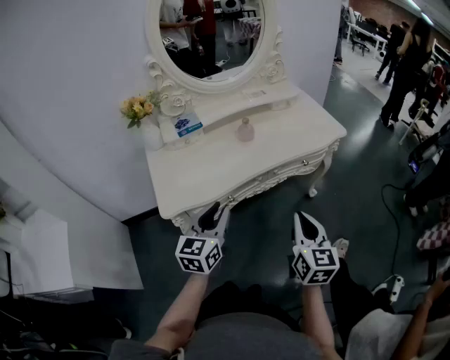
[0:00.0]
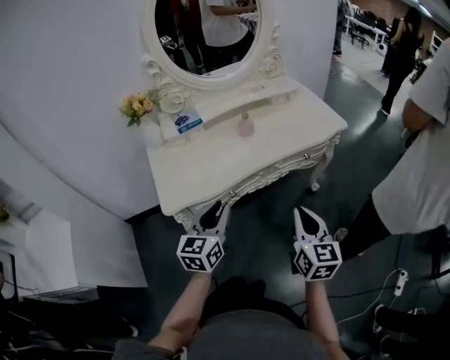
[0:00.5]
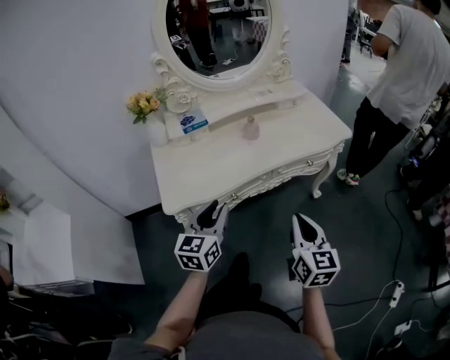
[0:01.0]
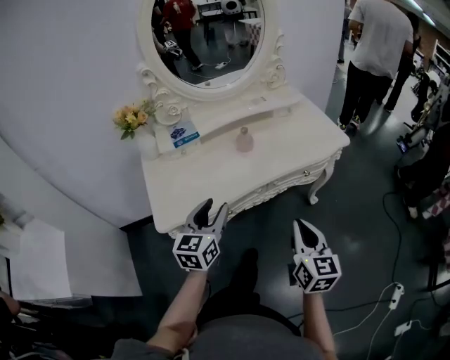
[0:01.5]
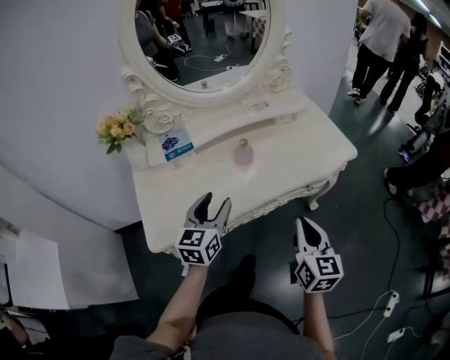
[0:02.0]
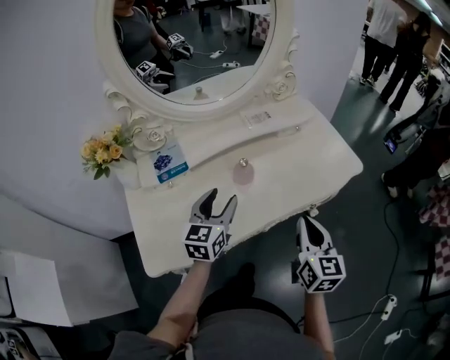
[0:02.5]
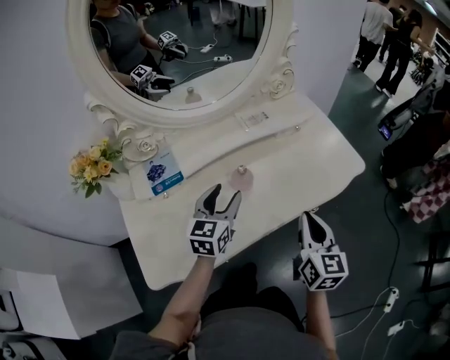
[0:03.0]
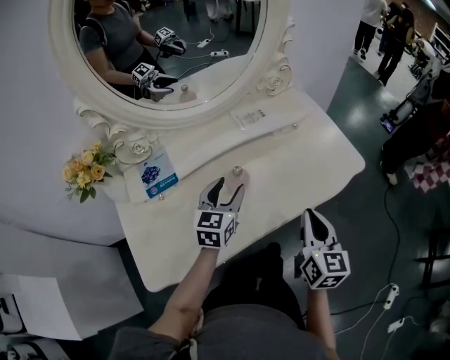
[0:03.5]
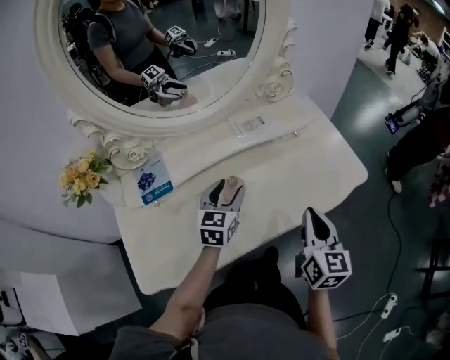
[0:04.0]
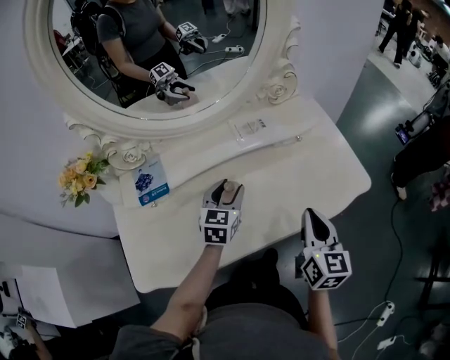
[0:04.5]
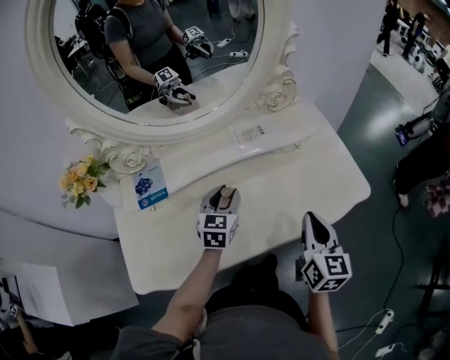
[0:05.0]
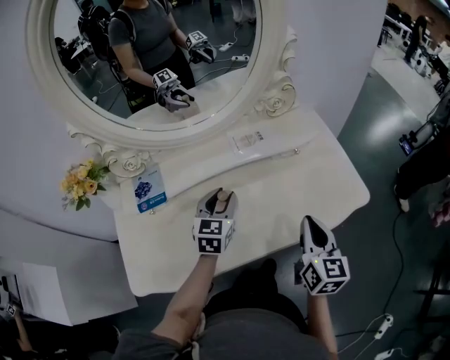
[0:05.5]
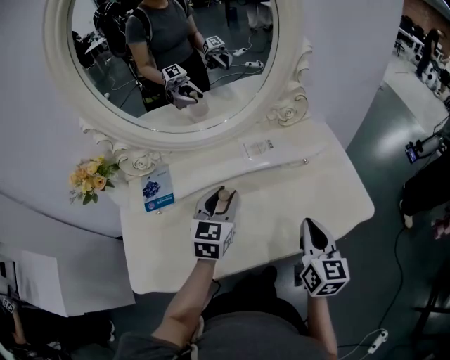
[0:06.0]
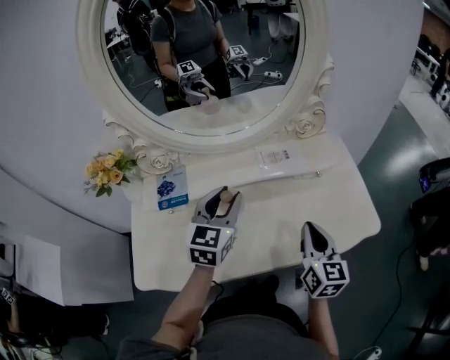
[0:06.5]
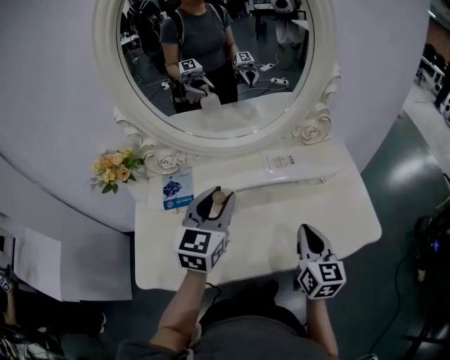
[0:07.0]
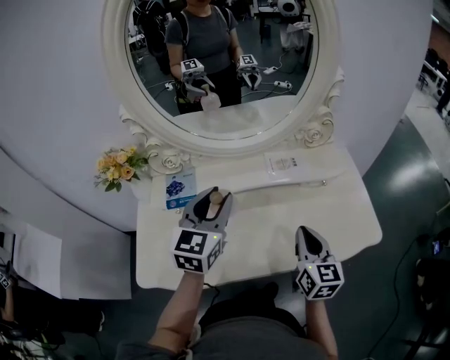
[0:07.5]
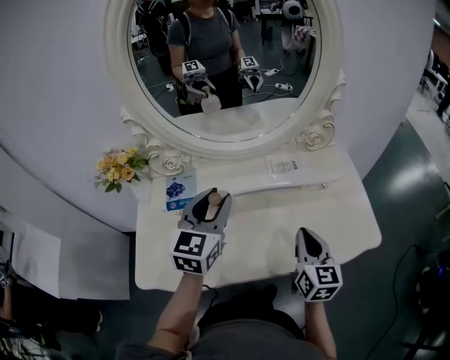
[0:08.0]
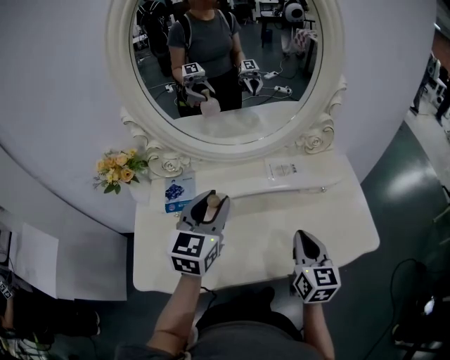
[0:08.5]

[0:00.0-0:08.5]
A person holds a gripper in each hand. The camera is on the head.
0:00.0 to 0:02.0: Both grippers move forward, some 15 cm. The left gripper opens.
0:02.0 to 0:04.0: The two grippers go some 20 cm forward.
0:04.0 to 0:06.5: The left gripper moves upward, approximately 10 cm, and closes up. The right gripper is displaced forward by about 10 cm.
0:06.5 to 0:08.5: The left gripper shifts by roughly 5 cm.

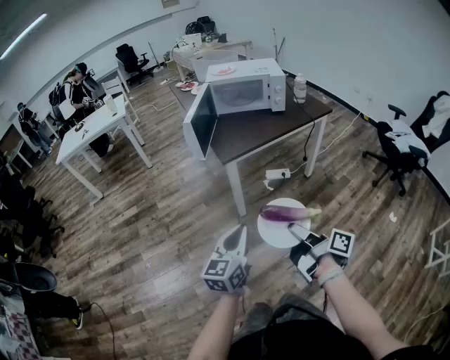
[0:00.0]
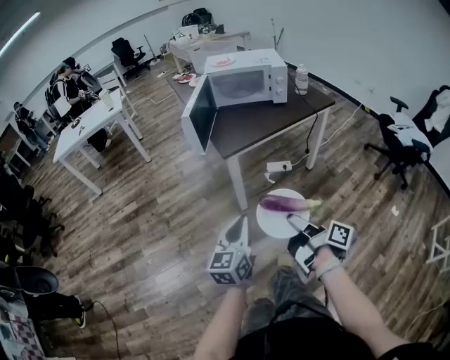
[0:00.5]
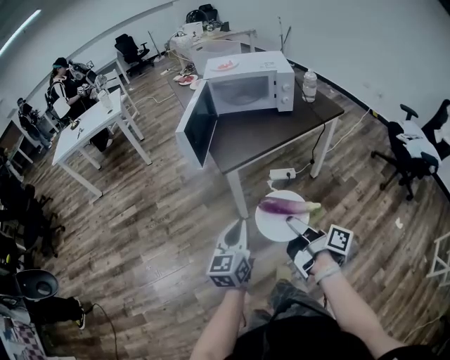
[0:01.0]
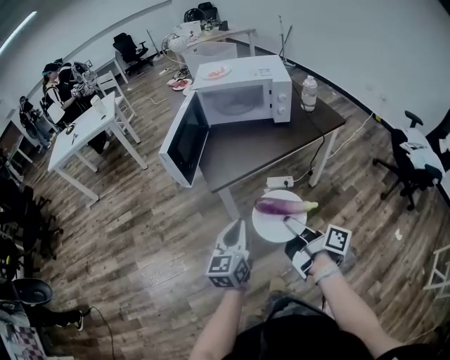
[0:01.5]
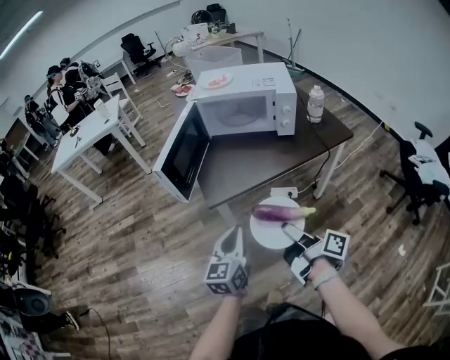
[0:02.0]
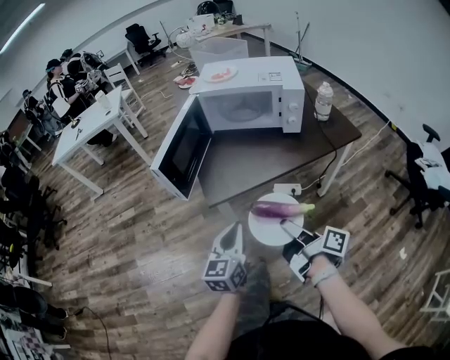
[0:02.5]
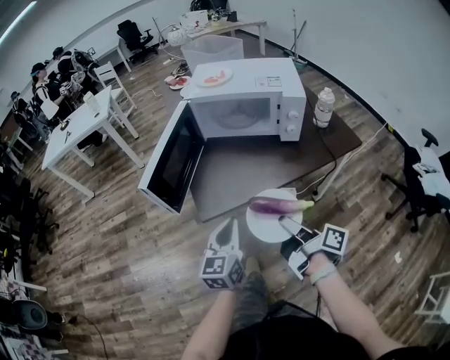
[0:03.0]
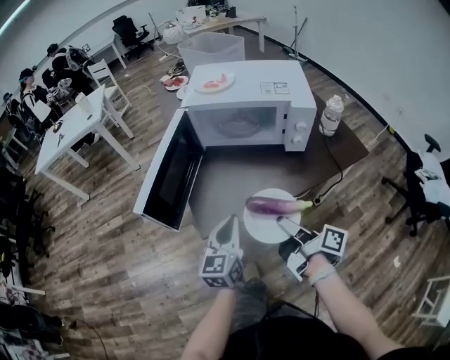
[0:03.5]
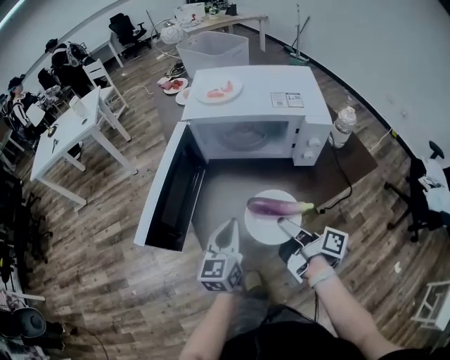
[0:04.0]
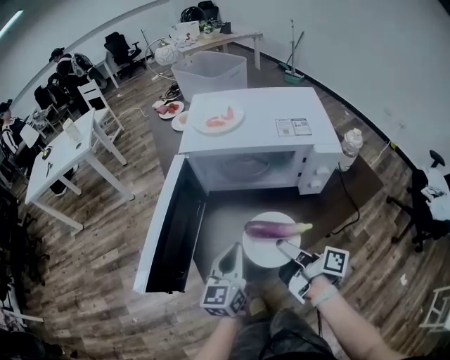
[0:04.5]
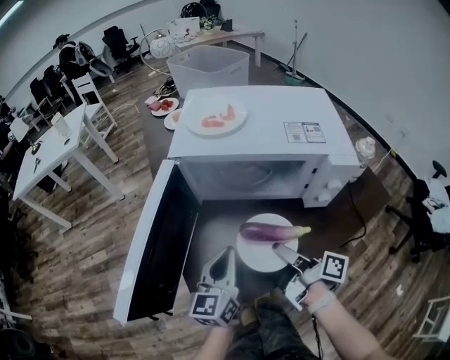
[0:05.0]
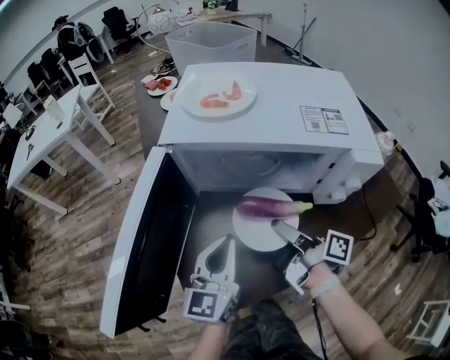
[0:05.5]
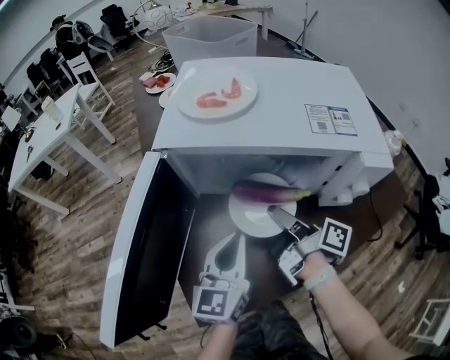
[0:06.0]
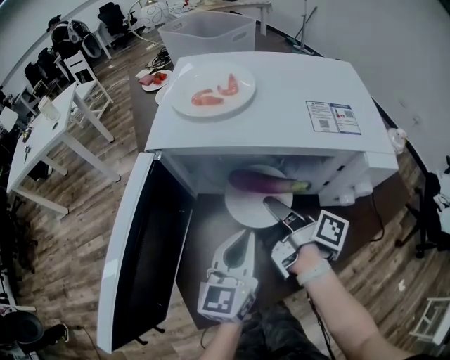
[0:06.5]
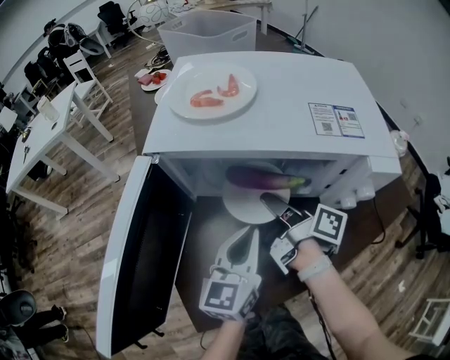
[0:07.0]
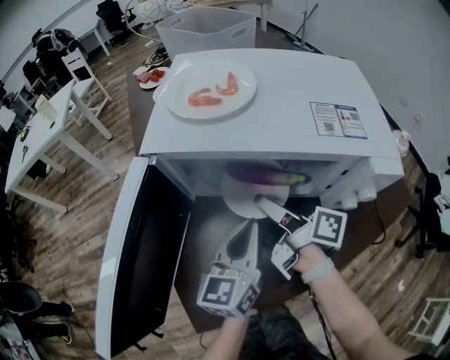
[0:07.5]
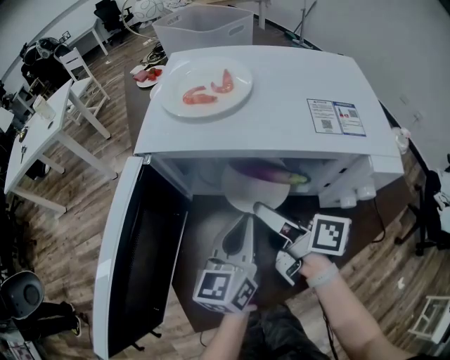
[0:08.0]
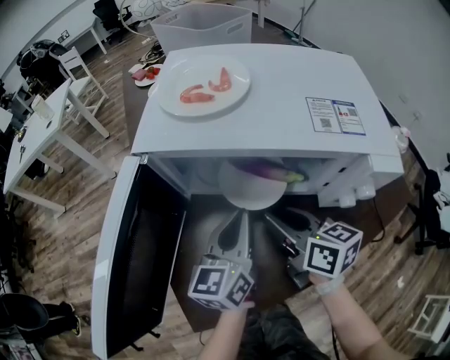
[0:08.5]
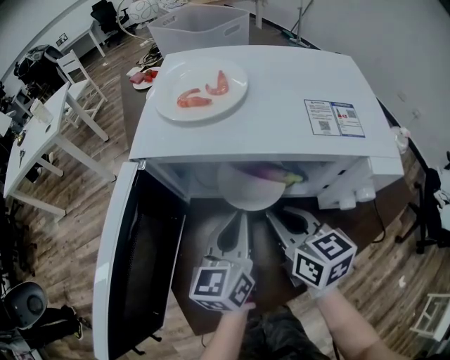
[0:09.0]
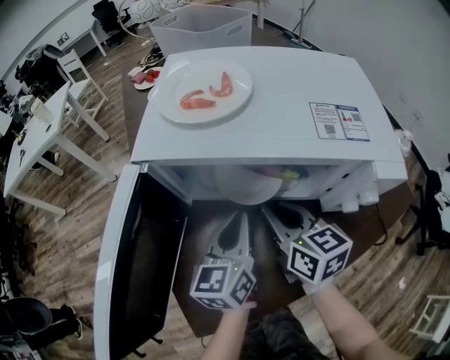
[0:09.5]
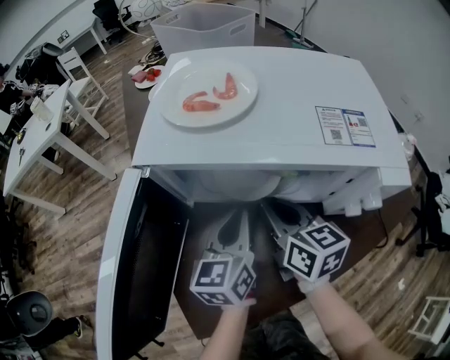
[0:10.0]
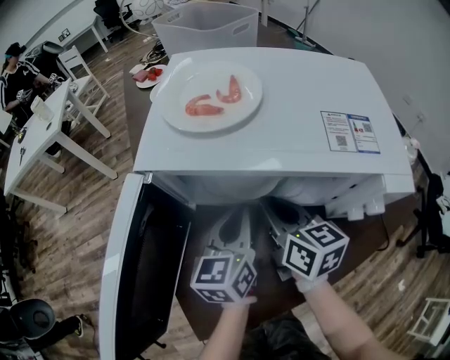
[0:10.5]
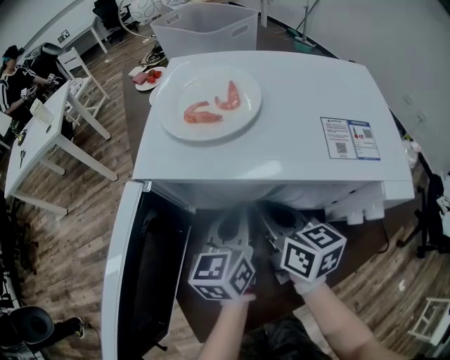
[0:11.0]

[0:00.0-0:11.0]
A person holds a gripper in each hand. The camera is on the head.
0:00.0 to 0:02.0: The grippers both shift forward by about 25 cm.
0:02.0 to 0:03.5: Both grippers move forward, about 15 cm.
0:03.5 to 0:05.5: The grippers both shift forward by roughly 20 cm.
0:05.5 to 0:07.5: The right gripper travels forward by about 10 cm, and opens. The left gripper shifts about 10 cm to the right and forward.
0:07.5 to 0:09.0: The right gripper rotates around the line of its fingers by roughly 50 degrees, counterclockwise from behind, and closes its fingers.
0:09.0 to 0:11.0: Both grippers travel together forward, about 5 cm.

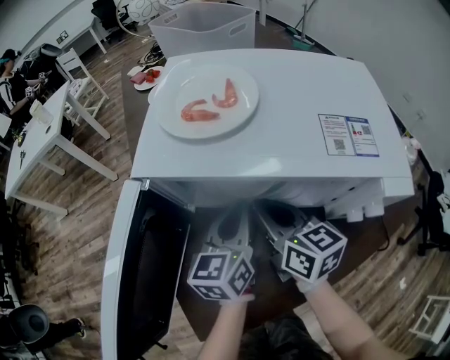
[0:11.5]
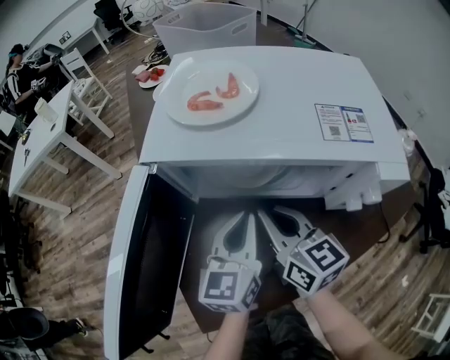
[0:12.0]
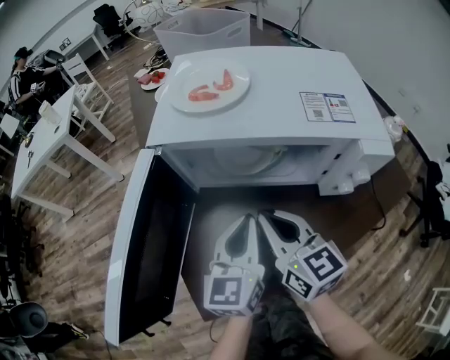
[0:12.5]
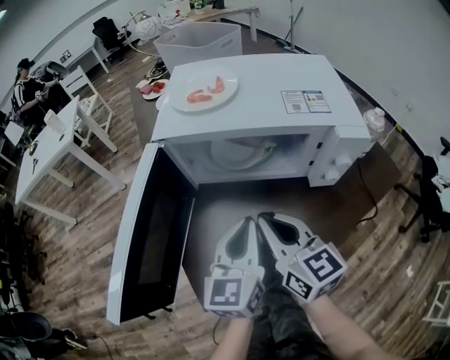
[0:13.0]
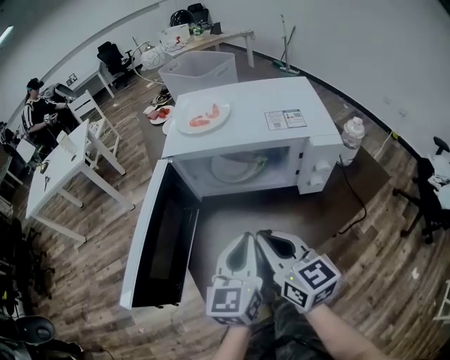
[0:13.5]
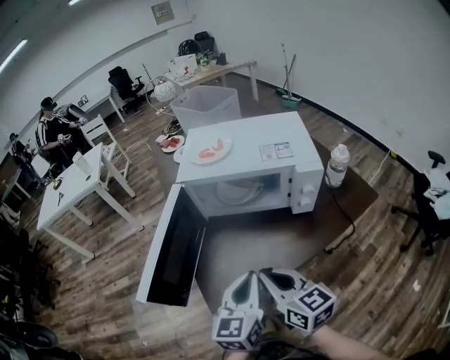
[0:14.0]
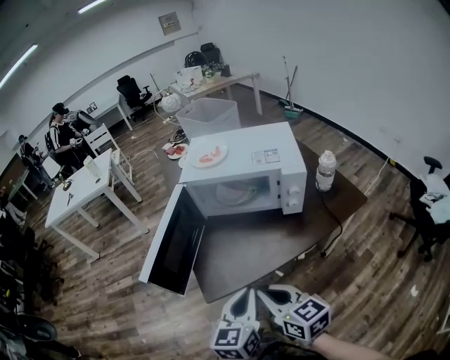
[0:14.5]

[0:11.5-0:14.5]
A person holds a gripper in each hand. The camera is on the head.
0:11.5 to 0:13.0: Both grippers move backward and upward, about 15 cm.
0:13.0 to 0:14.5: The grippers both shift backward by approximately 25 cm.

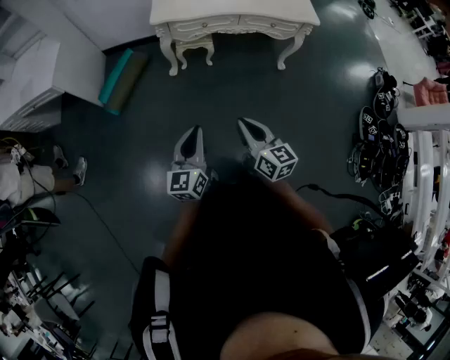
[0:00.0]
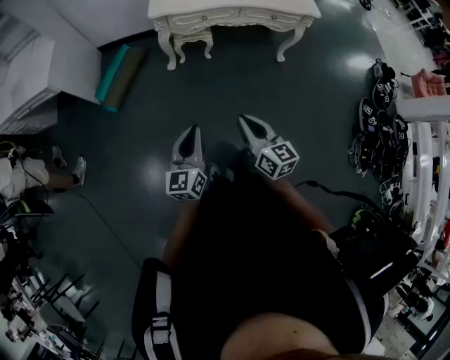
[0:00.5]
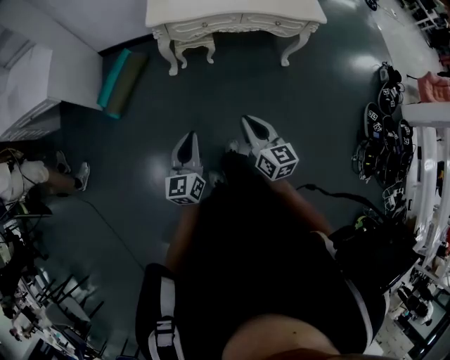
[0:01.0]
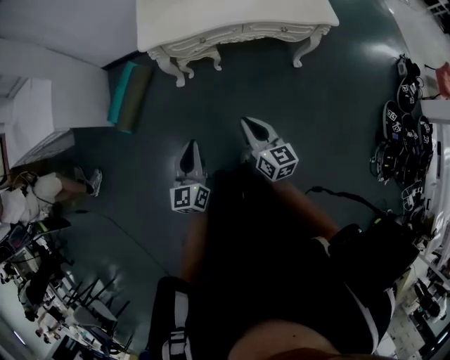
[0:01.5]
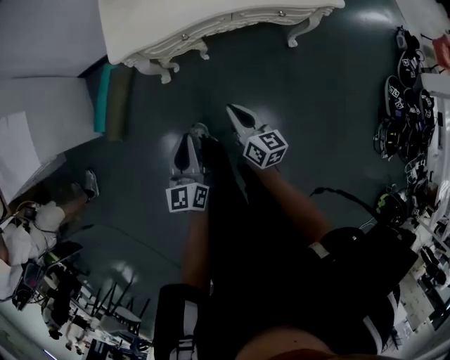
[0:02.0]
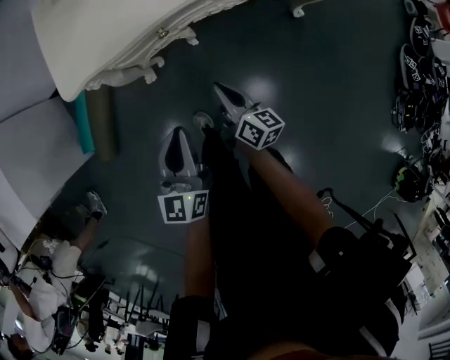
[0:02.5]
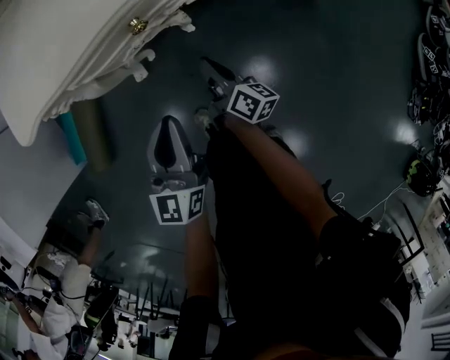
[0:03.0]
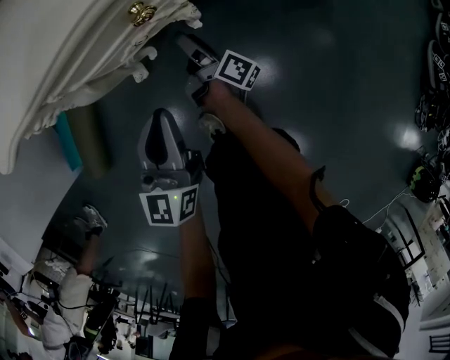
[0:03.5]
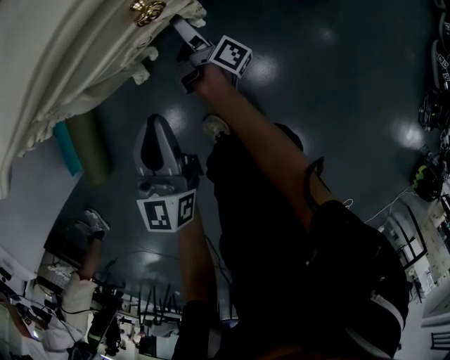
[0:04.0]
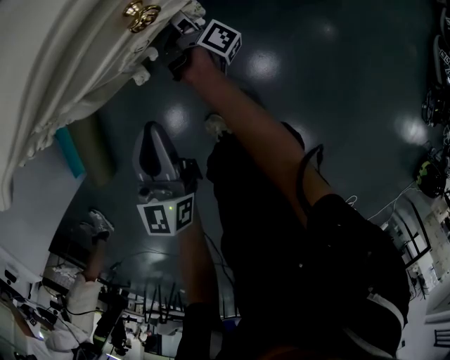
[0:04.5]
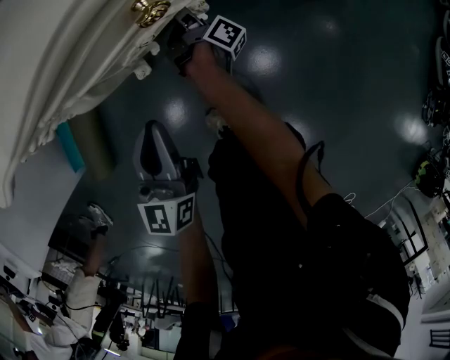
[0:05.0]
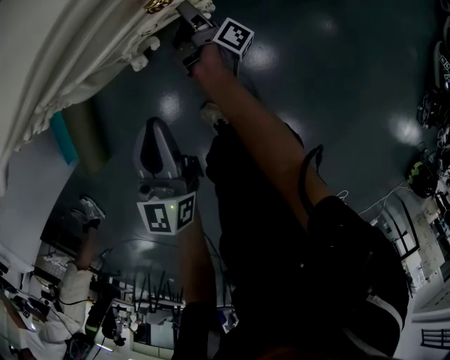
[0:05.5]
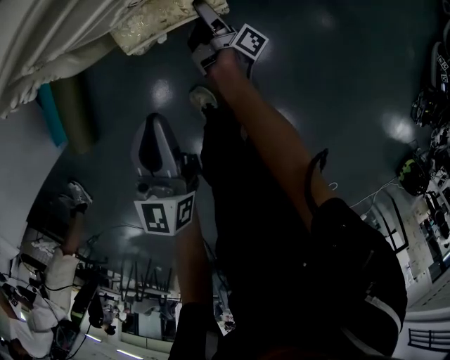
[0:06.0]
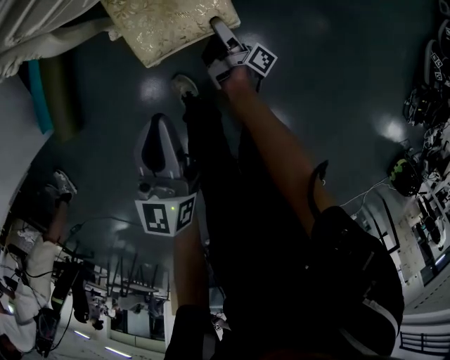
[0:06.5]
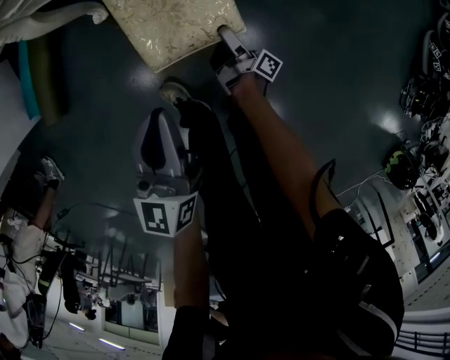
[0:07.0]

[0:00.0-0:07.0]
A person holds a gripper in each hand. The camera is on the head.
0:00.0 to 0:02.0: The left gripper ends up some 35 cm from where it was.
0:02.0 to 0:03.5: The left gripper travels downward by about 35 cm.
0:05.0 to 0:07.0: The left gripper changes place by some 25 cm.
